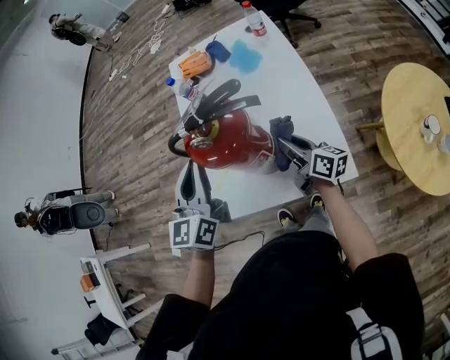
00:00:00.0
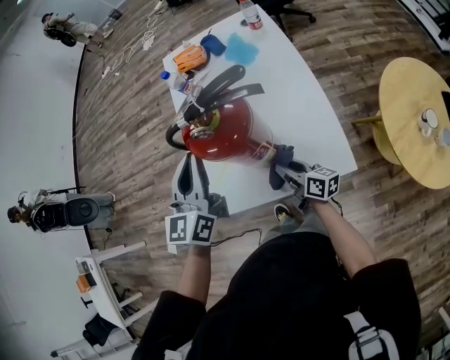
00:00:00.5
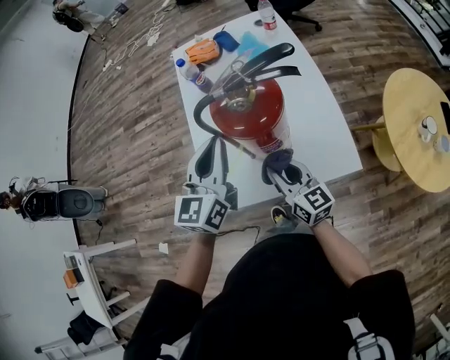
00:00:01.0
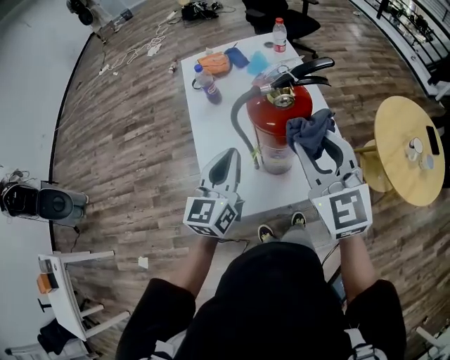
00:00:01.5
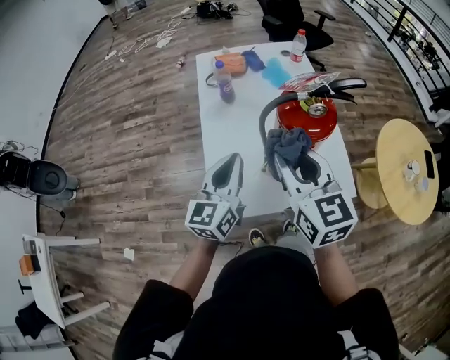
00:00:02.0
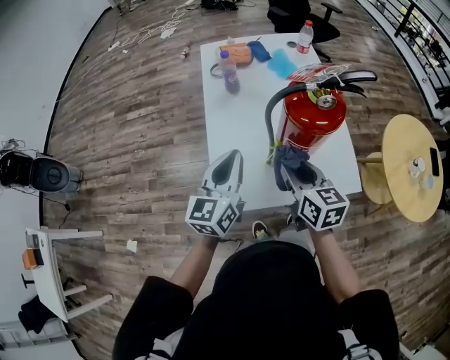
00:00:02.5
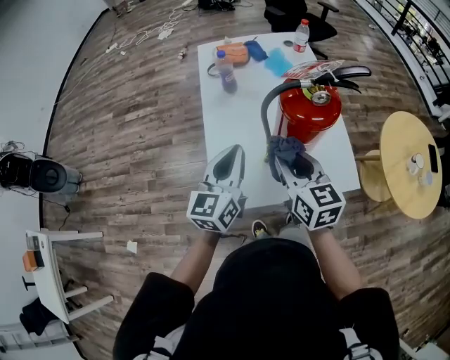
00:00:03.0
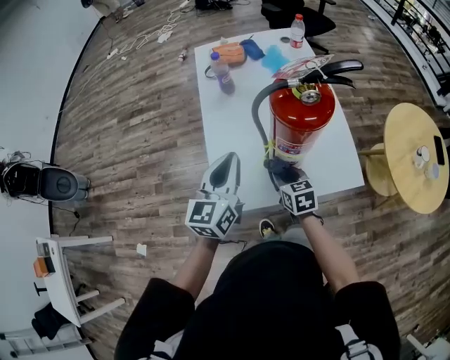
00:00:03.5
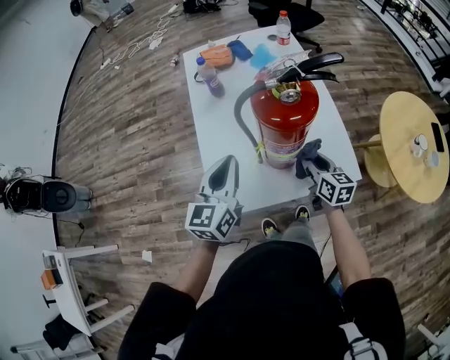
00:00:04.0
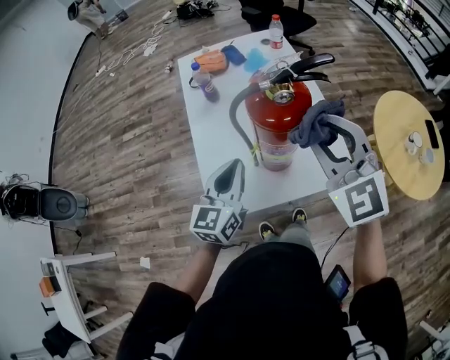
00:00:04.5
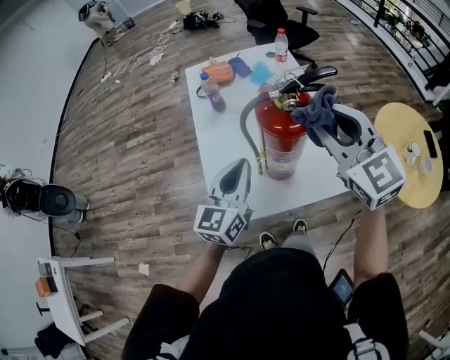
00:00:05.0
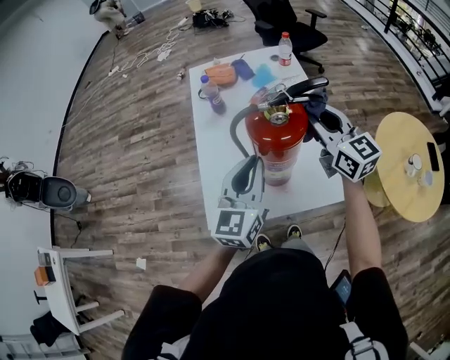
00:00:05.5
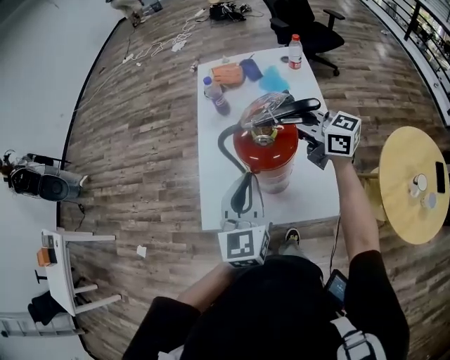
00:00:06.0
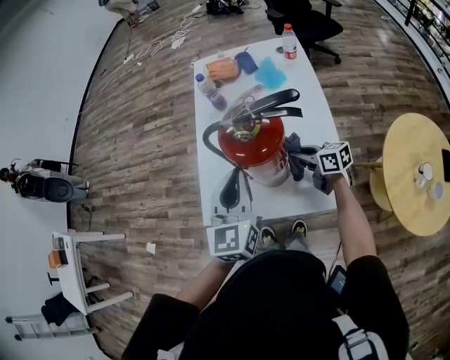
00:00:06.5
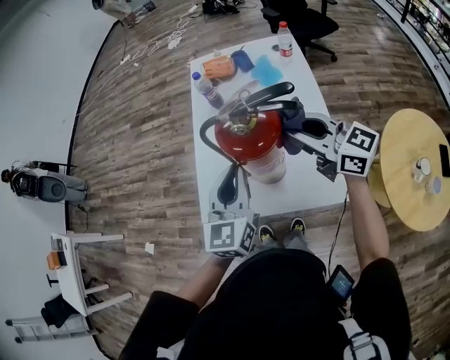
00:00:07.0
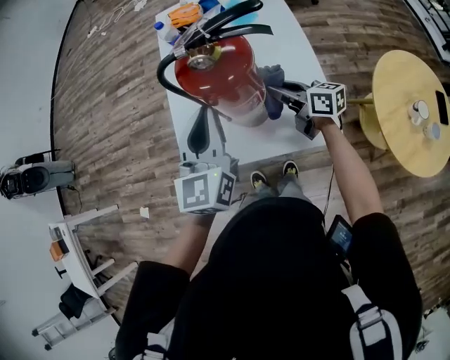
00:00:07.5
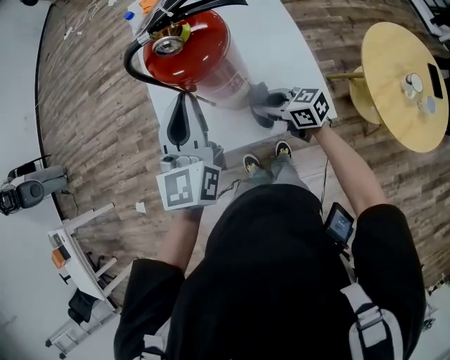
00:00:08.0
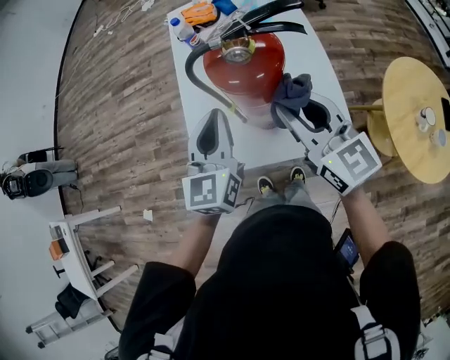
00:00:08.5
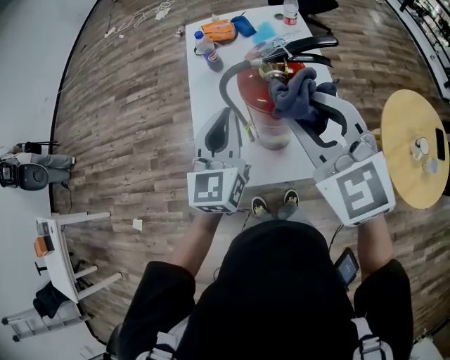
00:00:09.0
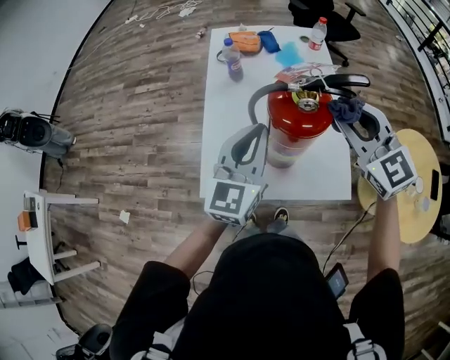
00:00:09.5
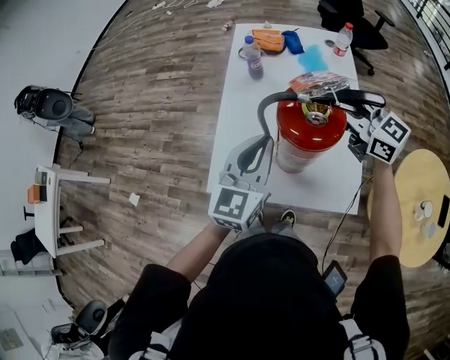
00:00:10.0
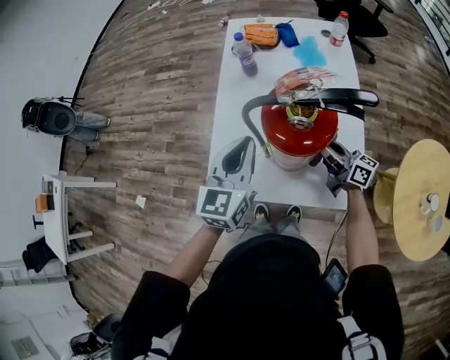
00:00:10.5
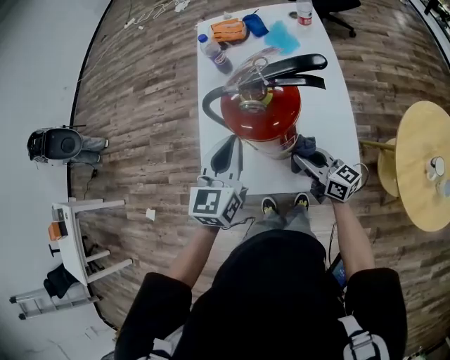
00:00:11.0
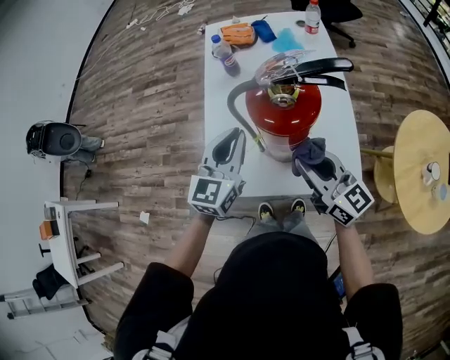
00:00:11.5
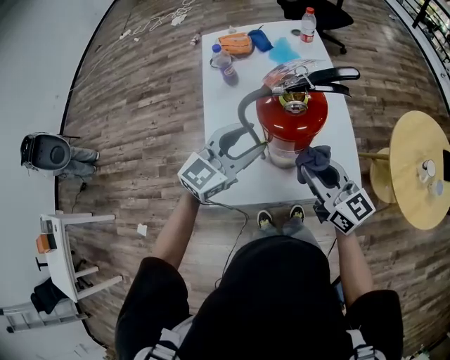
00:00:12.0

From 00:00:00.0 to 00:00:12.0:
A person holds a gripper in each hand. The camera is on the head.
From 00:00:00.0 to 00:00:02.0: The right gripper is displaced upward and to the left by some 30 cm, and rotates around the line of its fingers by about 50 degrees, counterclockwise from behind. Meanwhile the left gripper travels to the left by approximately 5 cm.
From 00:00:02.0 to 00:00:04.0: The right gripper goes up and down, about 30 cm each way, reversing 2 times, and changes its angle by roughly 30 degrees.
From 00:00:04.0 to 00:00:06.0: The right gripper shifts roughly 20 cm upward, and rotates some 50 degrees; the left gripper shifts by some 10 cm, and changes its angle by about 20 degrees.
From 00:00:06.0 to 00:00:08.0: The right gripper moves up and down over some 25 cm, changing direction 2 times, and rotates roughly 20 degrees.
From 00:00:08.0 to 00:00:10.0: The right gripper travels upward and forward by some 30 cm, and changes its angle by roughly 30 degrees.
From 00:00:10.0 to 00:00:12.0: The right gripper moves some 20 cm, and turns by roughly 30 degrees. Meanwhile the left gripper swivels some 40 degrees, and opens its fingers.

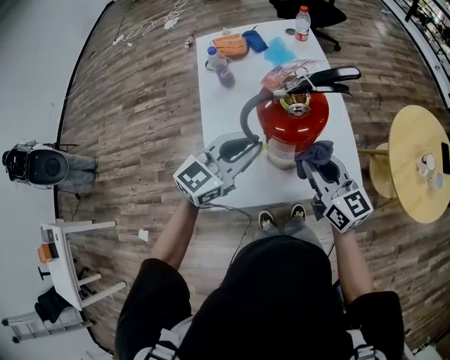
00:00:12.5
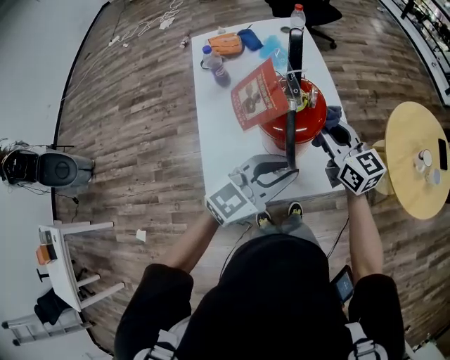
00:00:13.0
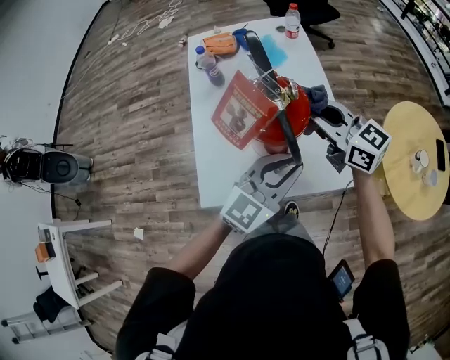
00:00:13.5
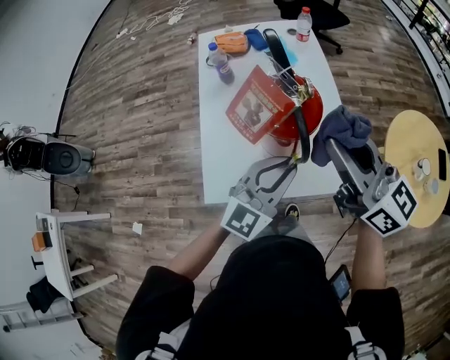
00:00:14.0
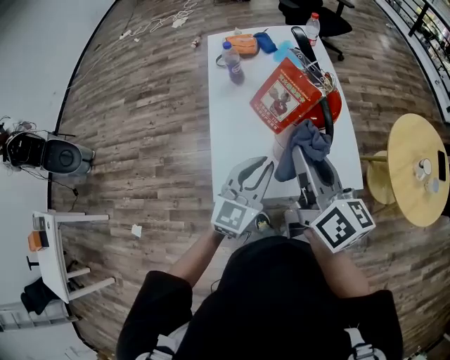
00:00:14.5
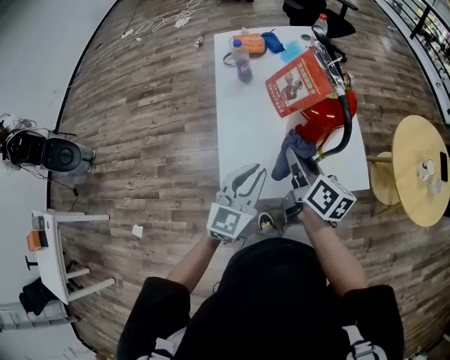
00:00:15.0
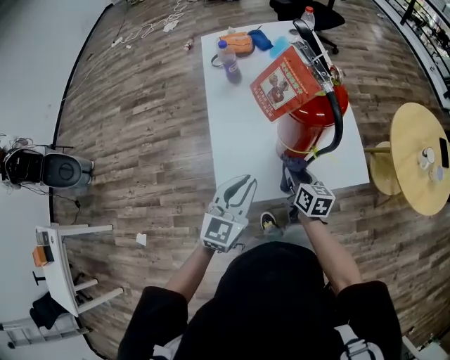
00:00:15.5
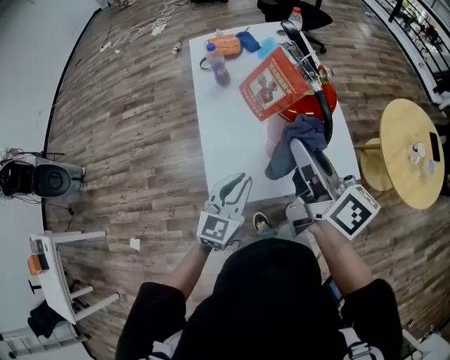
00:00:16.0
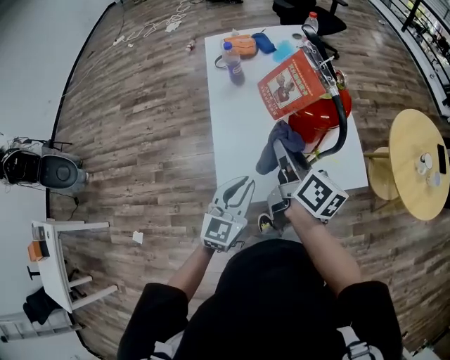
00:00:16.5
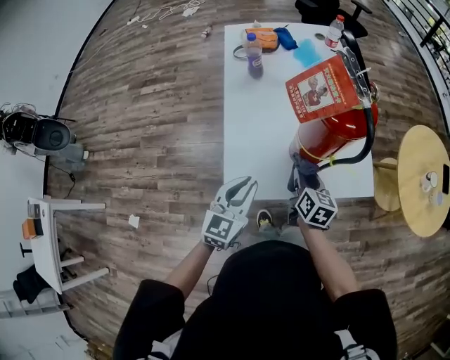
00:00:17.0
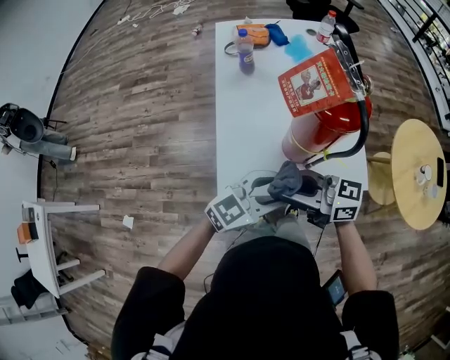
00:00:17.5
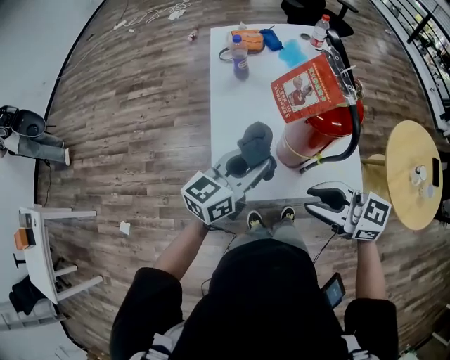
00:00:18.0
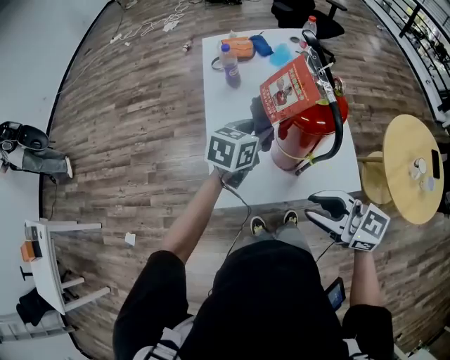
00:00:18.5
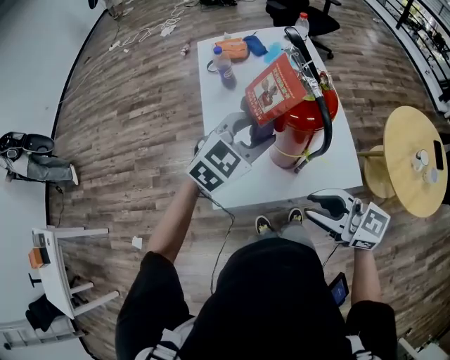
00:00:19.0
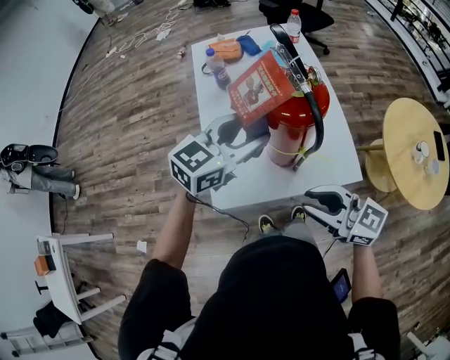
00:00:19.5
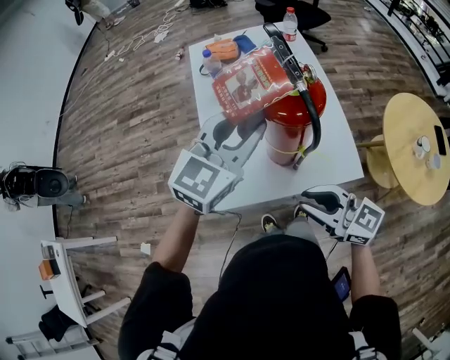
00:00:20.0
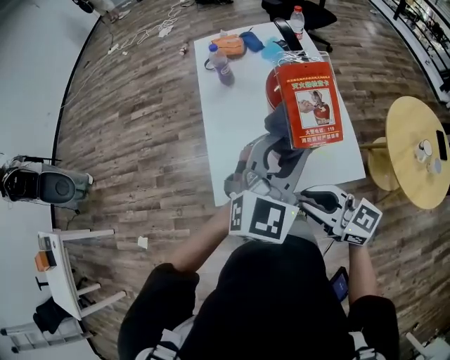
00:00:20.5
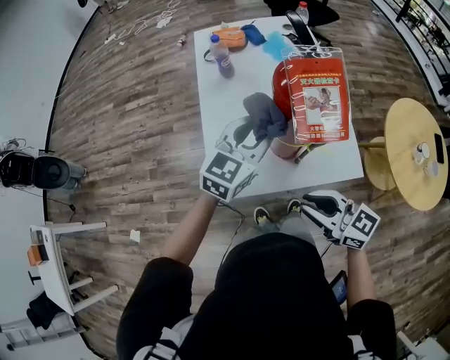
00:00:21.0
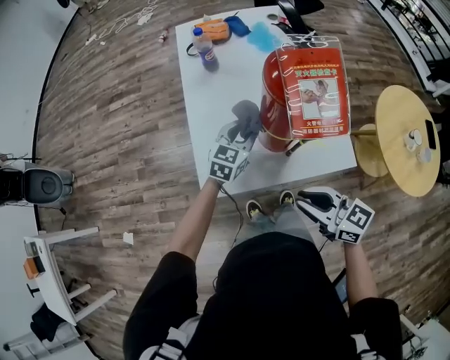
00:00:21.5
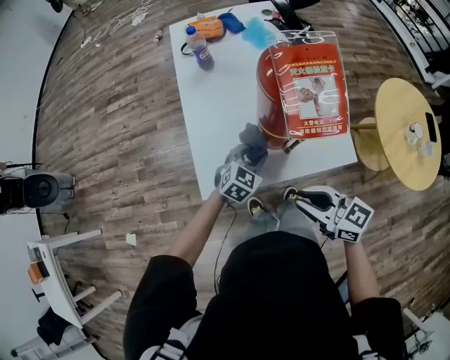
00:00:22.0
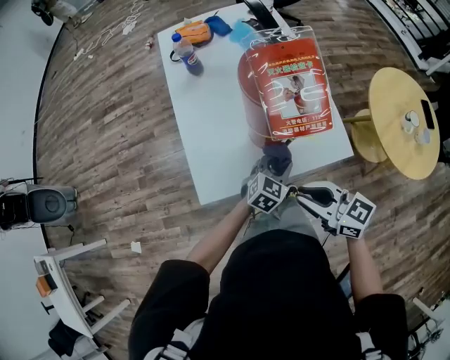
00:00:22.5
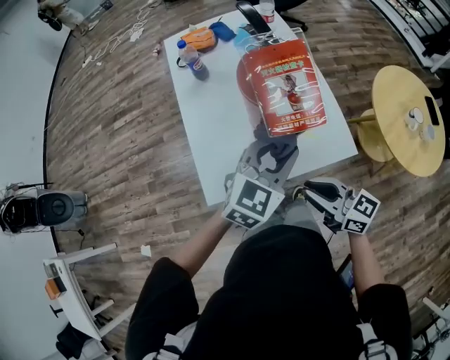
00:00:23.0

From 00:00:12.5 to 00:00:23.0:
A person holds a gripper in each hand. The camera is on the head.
From 00:00:12.5 to 00:00:14.5: The right gripper shifts approximately 10 cm upward and to the left, and swivels some 30 degrees. Meanwhile the left gripper travels backward by some 10 cm, moves approximately 15 cm to the right and comes back, and rotates about 20 degrees.
From 00:00:14.5 to 00:00:16.5: The left gripper moves to the left and downward, about 10 cm. The right gripper swings up and down, approximately 30 cm each way, with 2 reversals.
From 00:00:16.5 to 00:00:19.0: The right gripper travels downward and back again, roughly 15 cm each way, and changes its angle by roughly 60 degrees. Meanwhile the left gripper ends up some 15 cm from where it was, swivels about 30 degrees, and opens its fingers.
From 00:00:19.0 to 00:00:21.0: The right gripper heads downward, covering some 5 cm, while the left gripper travels upward and back again, roughly 10 cm each way, and swivels approximately 30 degrees.
From 00:00:21.0 to 00:00:23.0: The left gripper travels backward and to the right by approximately 10 cm, and moves some 20 cm downward and comes back.

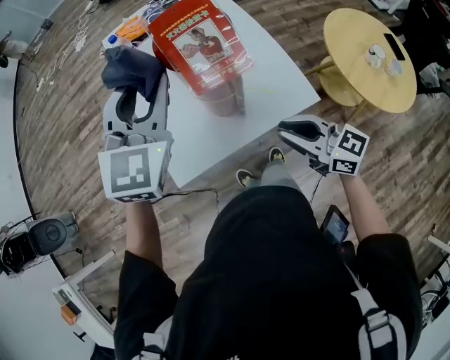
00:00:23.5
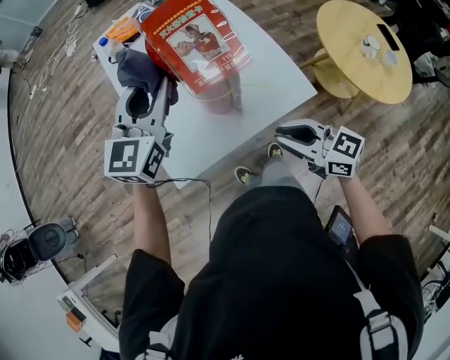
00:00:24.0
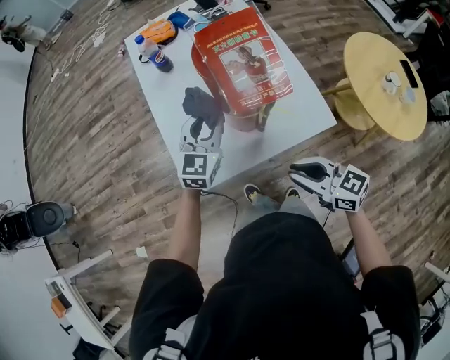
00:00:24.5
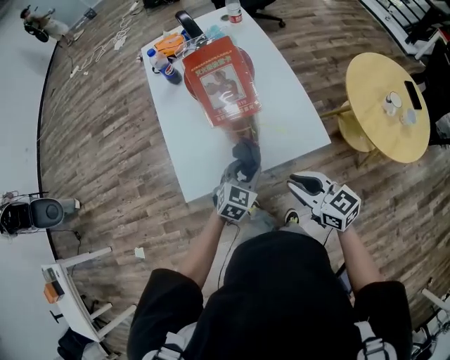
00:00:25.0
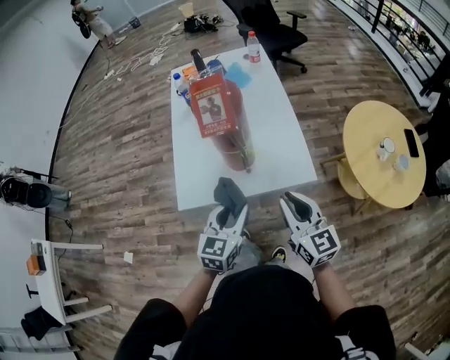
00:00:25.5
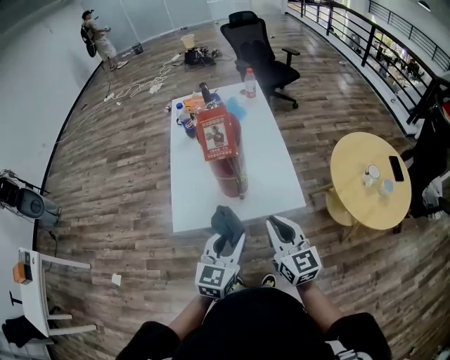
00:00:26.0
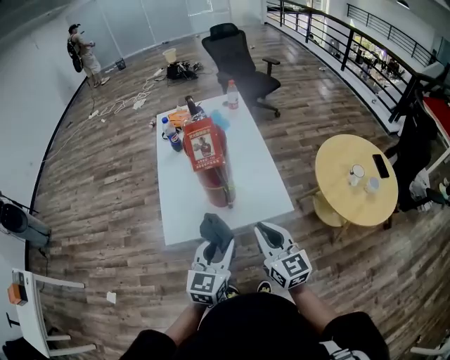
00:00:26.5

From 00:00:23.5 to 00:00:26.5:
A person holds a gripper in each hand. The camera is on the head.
From 00:00:23.5 to 00:00:25.0: The right gripper changes place by about 5 cm, while the left gripper moves downward and backward, roughly 35 cm, and changes its angle by approximately 30 degrees.
From 00:00:25.0 to 00:00:26.5: The left gripper heads upward and backward, covering some 25 cm, and changes its angle by some 30 degrees. Meanwhile the right gripper is displaced upward by about 10 cm, and rotates some 20 degrees.
